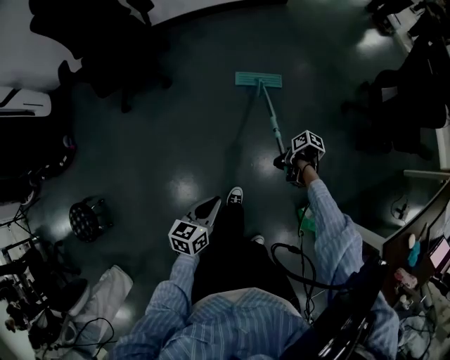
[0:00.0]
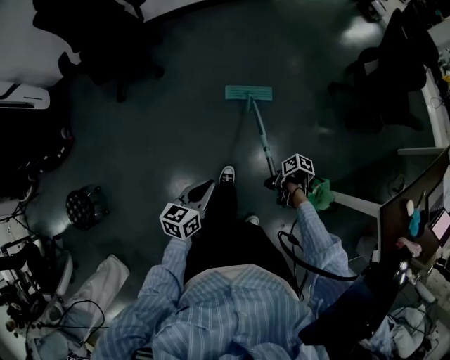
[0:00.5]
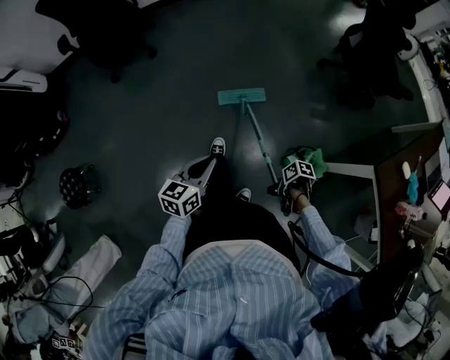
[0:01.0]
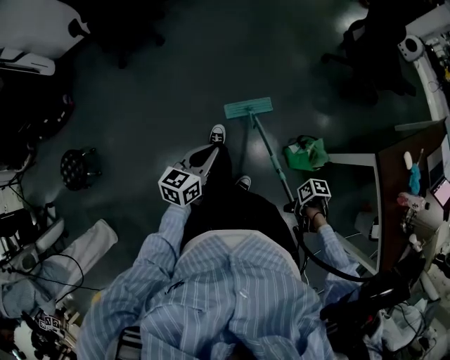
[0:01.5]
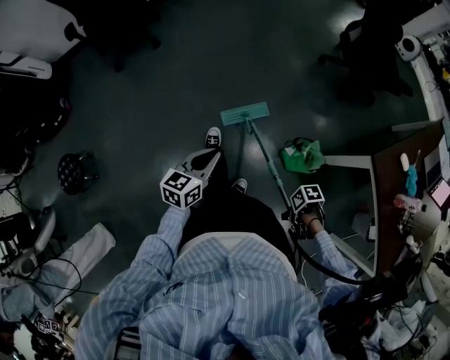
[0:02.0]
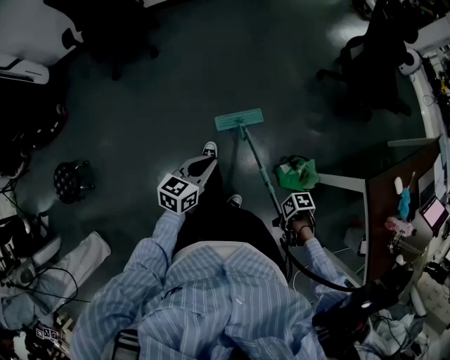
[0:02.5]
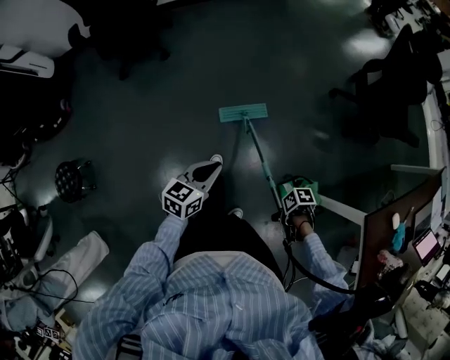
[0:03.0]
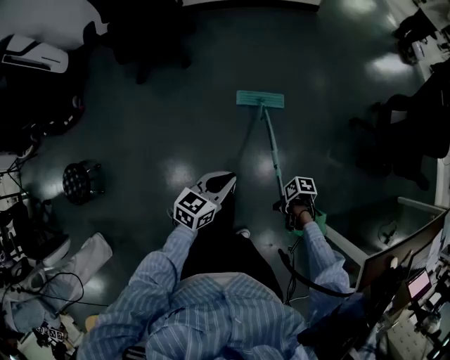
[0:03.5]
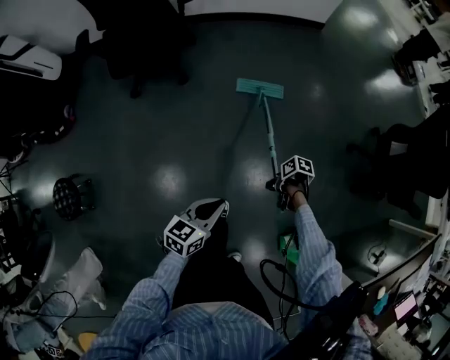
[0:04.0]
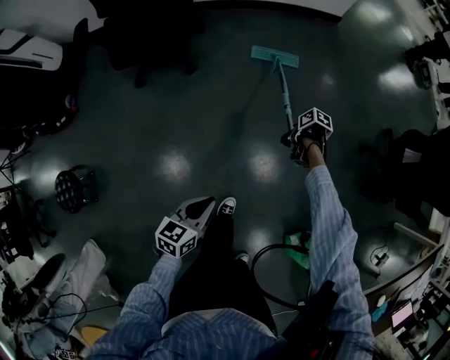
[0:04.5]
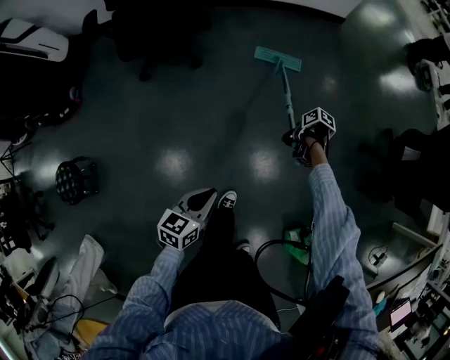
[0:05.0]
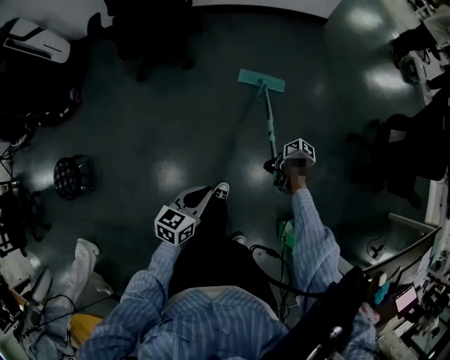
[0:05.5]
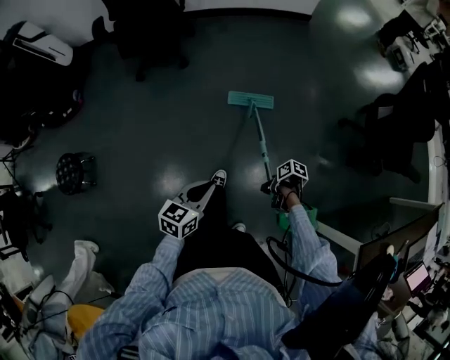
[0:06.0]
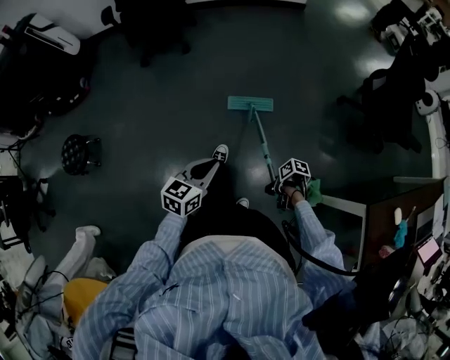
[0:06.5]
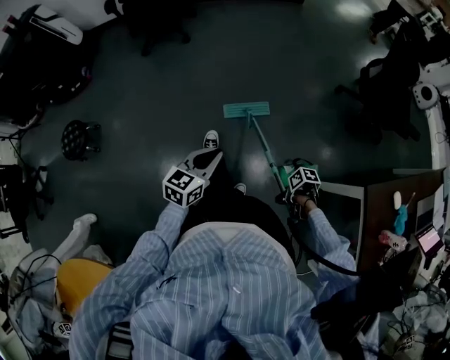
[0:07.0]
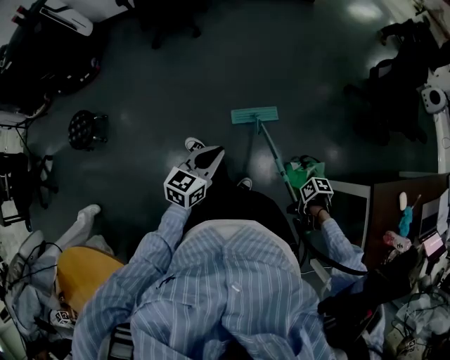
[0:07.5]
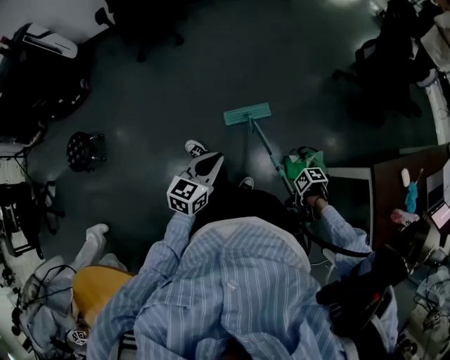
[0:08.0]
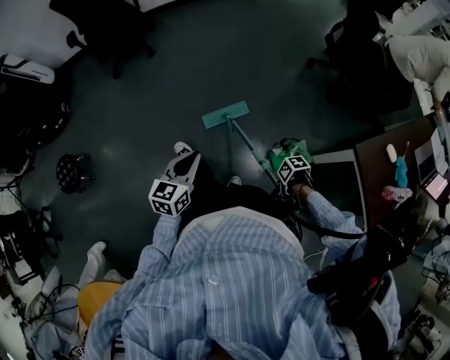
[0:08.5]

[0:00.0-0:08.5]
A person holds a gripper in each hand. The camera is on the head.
0:00.0 to 0:02.0: The left gripper ends up approximately 30 cm from where it was.
0:02.0 to 0:04.0: The left gripper moves about 40 cm.
0:04.0 to 0:06.5: The left gripper moves roughly 30 cm.
0:06.5 to 0:08.5: The left gripper ends up about 10 cm from where it was.

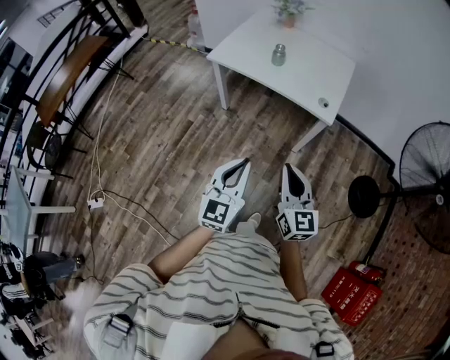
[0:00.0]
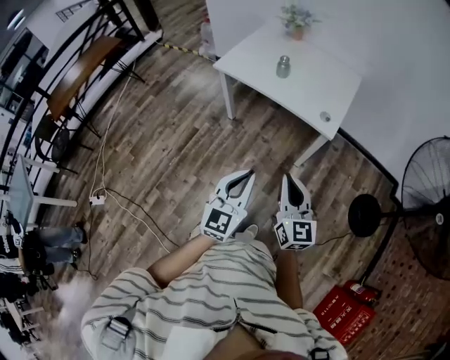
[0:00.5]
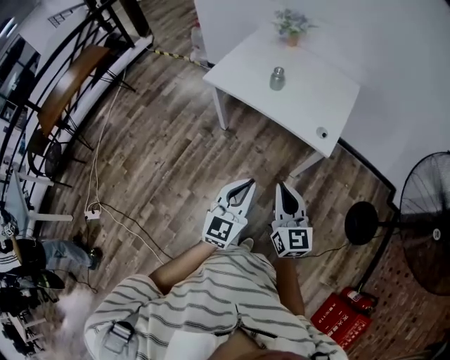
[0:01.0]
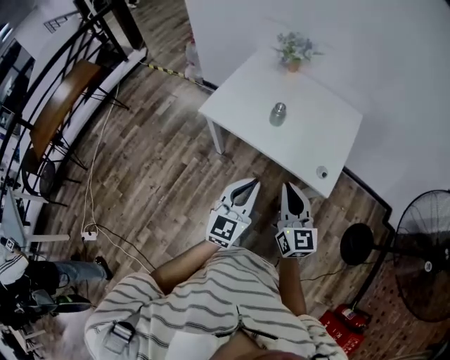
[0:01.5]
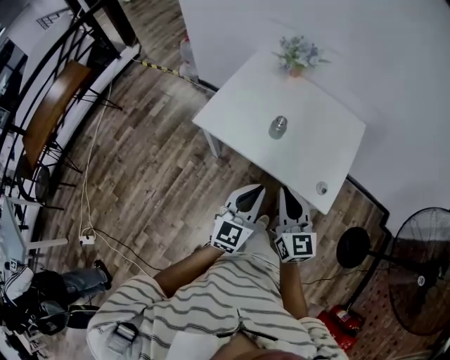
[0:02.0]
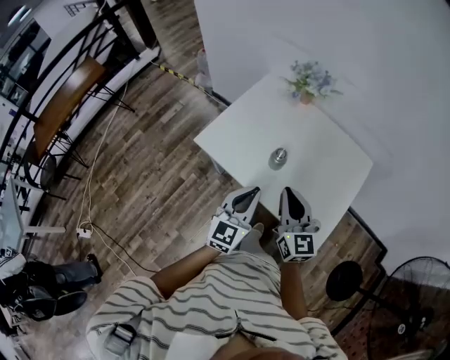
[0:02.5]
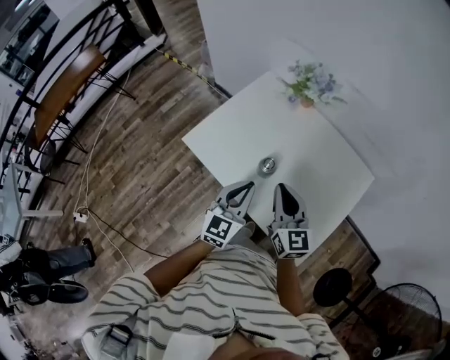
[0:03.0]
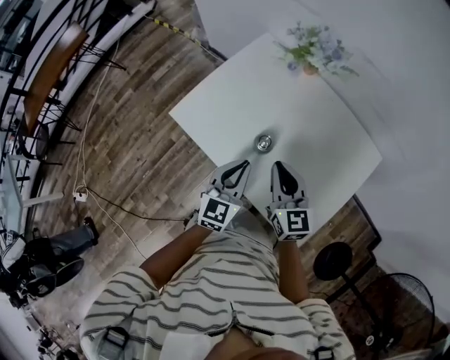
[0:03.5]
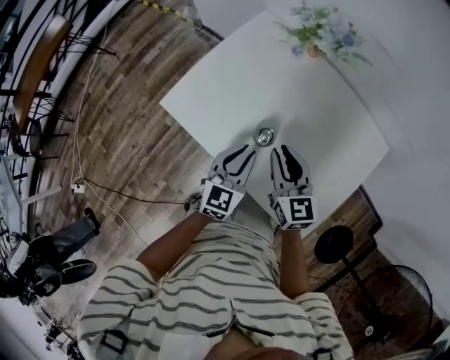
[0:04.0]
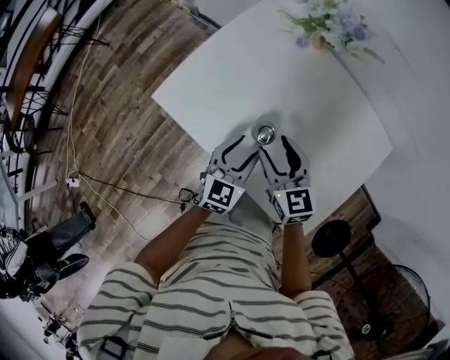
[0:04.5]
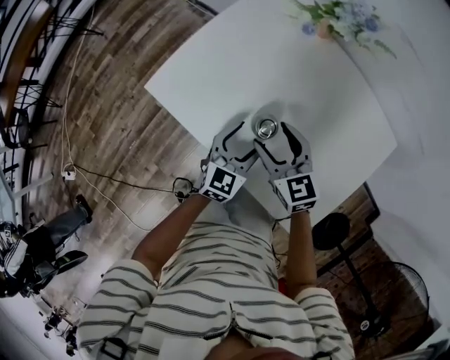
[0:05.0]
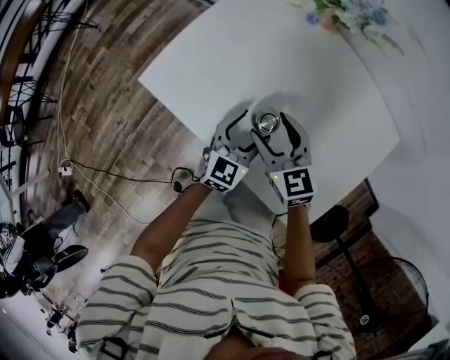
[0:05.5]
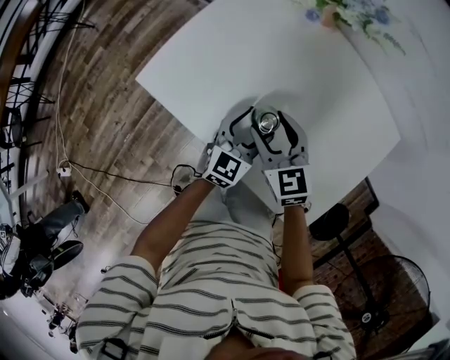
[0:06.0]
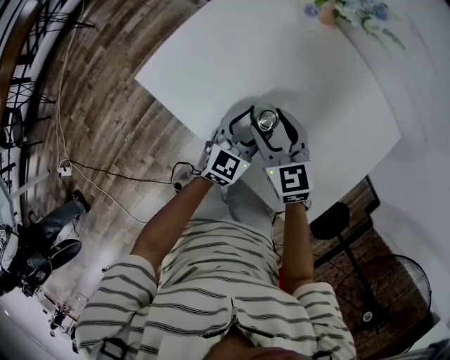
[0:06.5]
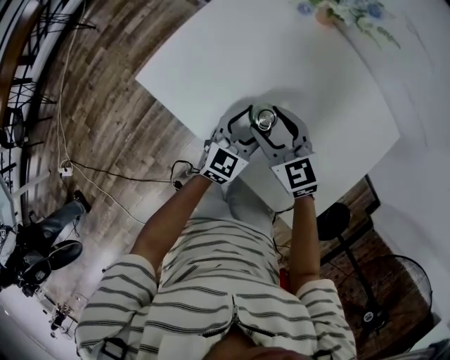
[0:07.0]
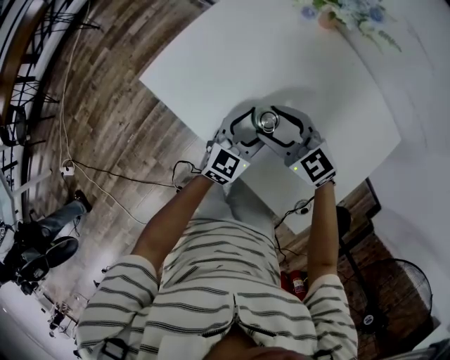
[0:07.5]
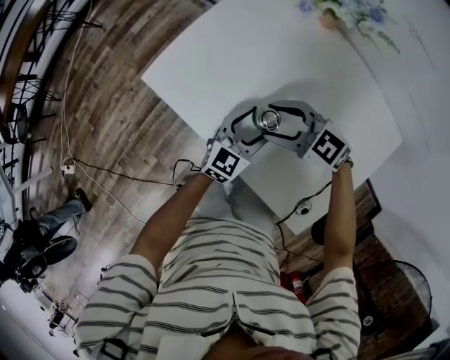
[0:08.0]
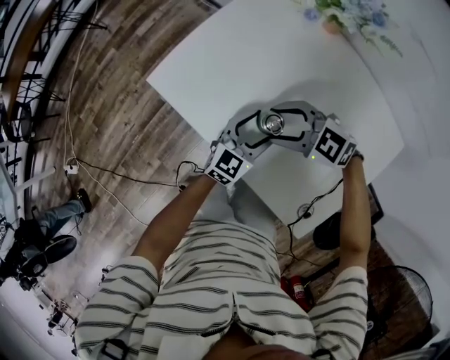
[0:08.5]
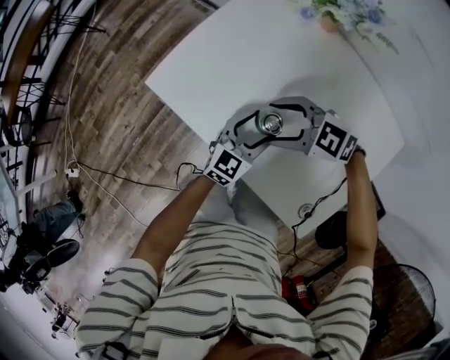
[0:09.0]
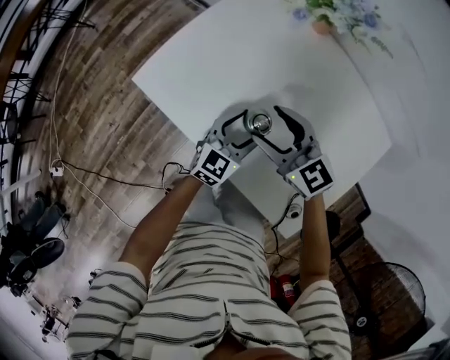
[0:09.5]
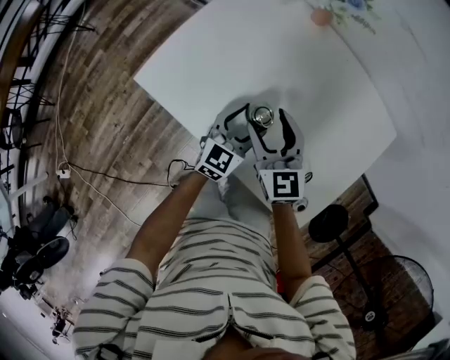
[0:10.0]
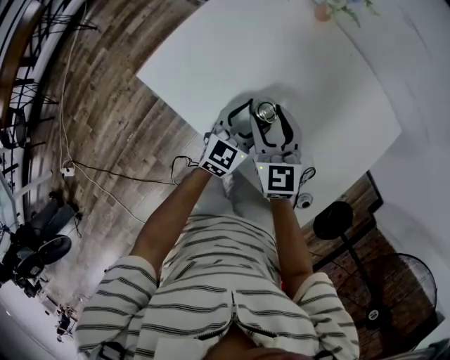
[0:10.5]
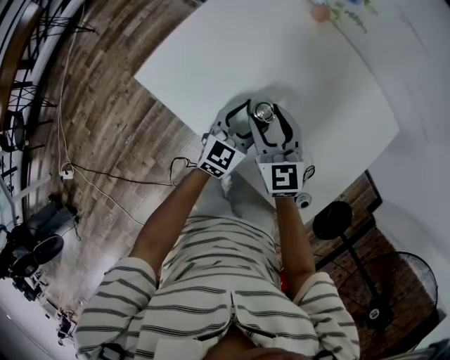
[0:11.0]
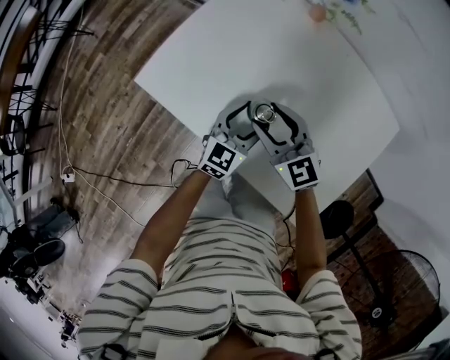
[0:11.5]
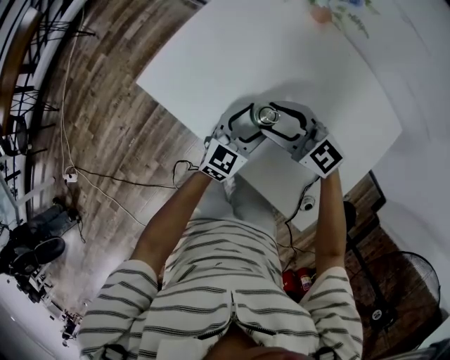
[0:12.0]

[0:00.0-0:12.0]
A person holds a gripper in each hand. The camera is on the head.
0:00.0 to 0:02.0: The grippers both shift forward by some 35 cm.
0:02.0 to 0:04.0: The grippers both shift forward and downward by some 30 cm. The right gripper rotates roughly 20 degrees.
0:04.0 to 0:06.0: Both grippers travel together downward, roughly 10 cm. The left gripper opens. Meanwhile the right gripper opens its fingers.
0:06.0 to 0:08.0: The right gripper rotates some 50 degrees.
0:08.0 to 0:10.0: The right gripper rotates some 60 degrees.
0:10.0 to 0:12.0: The right gripper rotates some 40 degrees.

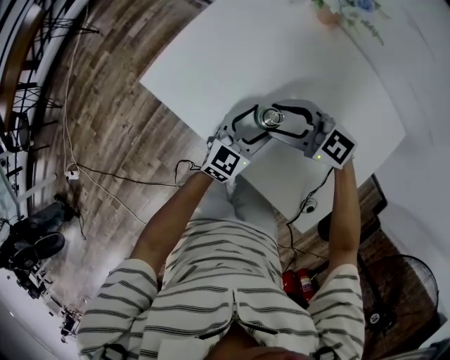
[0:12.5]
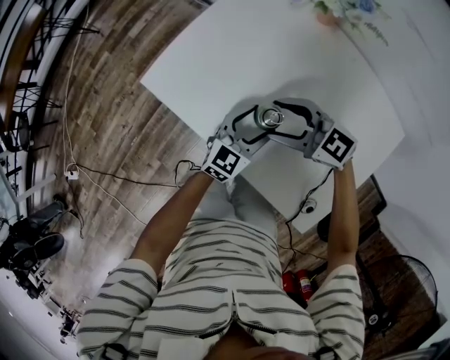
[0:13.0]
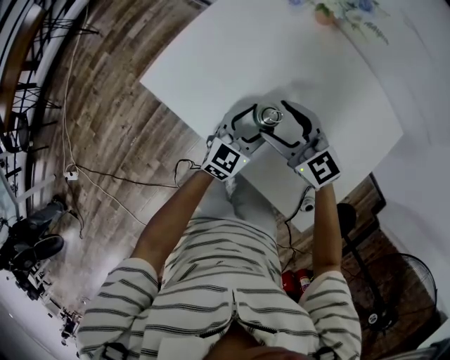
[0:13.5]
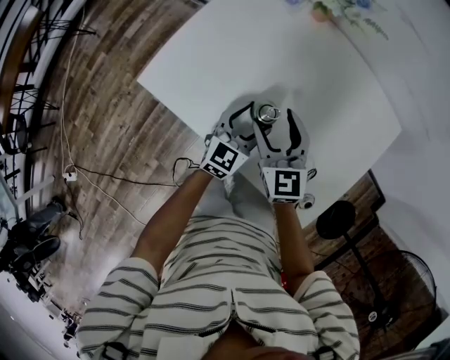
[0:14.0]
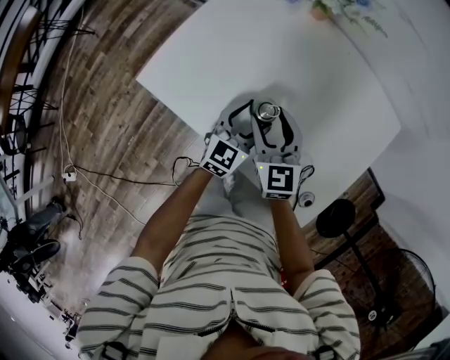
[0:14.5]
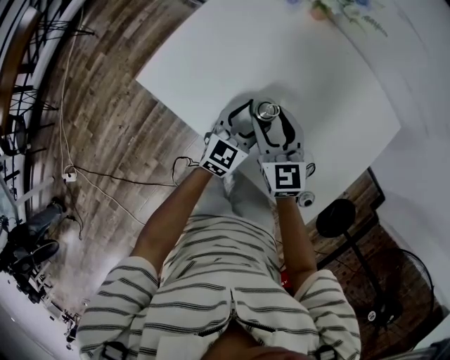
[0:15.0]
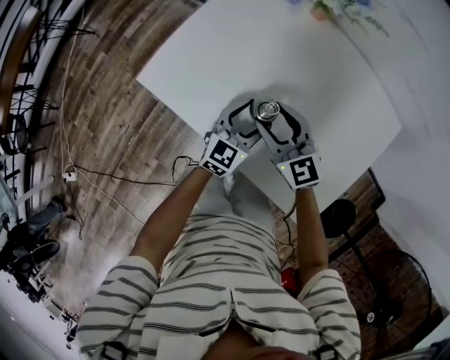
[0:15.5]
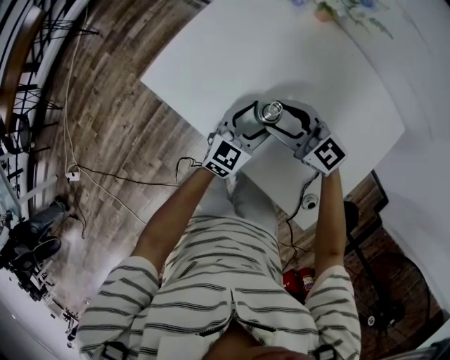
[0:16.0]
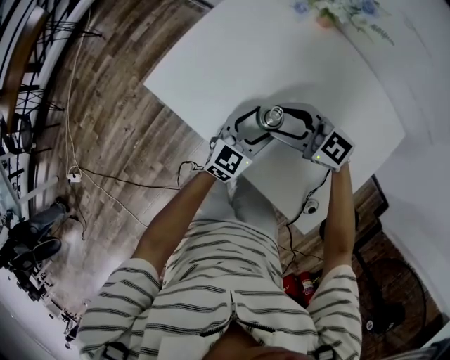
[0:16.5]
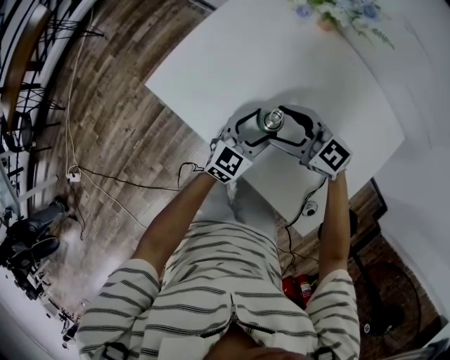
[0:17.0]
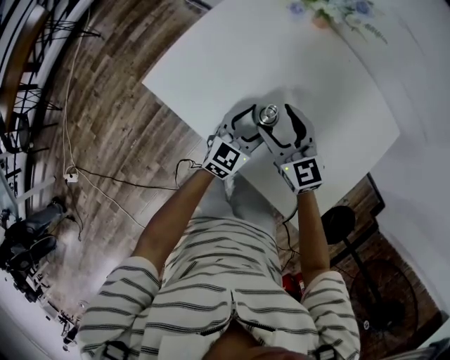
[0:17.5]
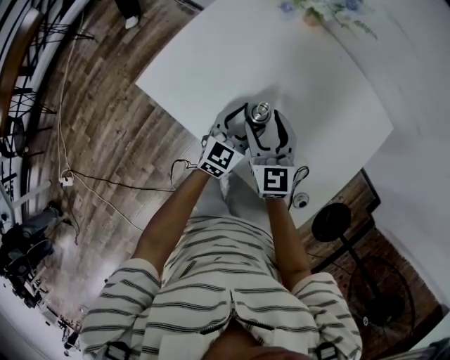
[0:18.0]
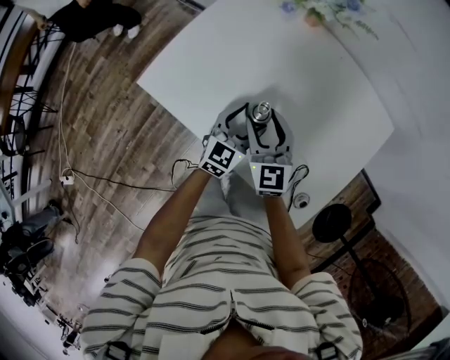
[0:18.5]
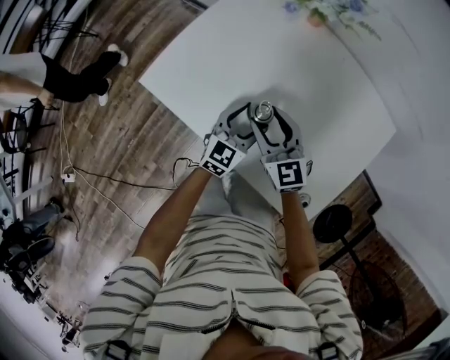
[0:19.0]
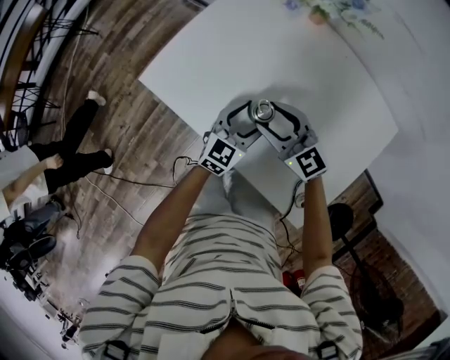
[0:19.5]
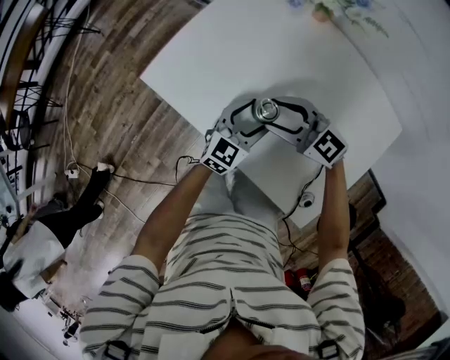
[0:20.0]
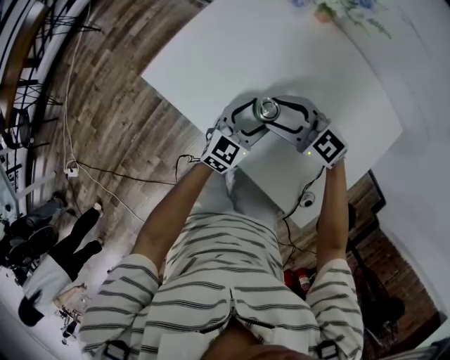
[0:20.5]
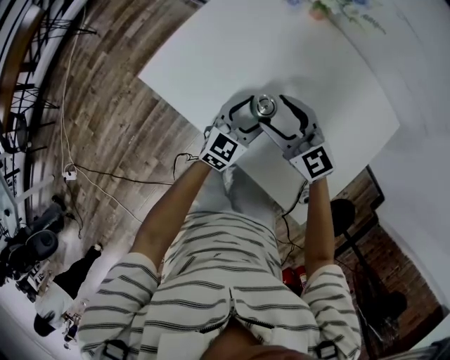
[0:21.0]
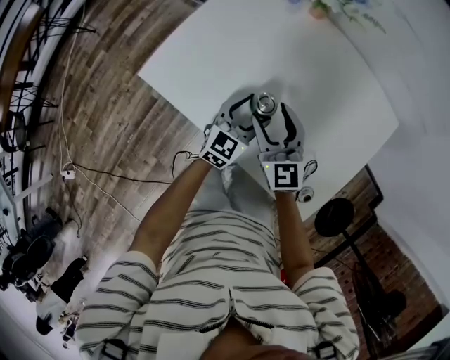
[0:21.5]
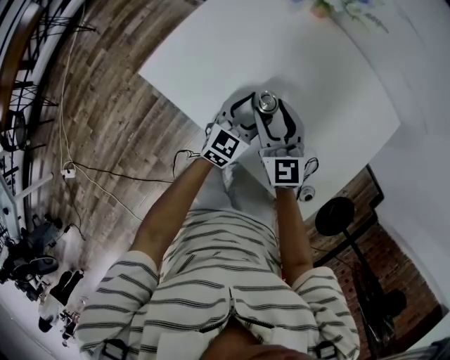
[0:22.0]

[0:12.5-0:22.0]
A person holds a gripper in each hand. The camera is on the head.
0:12.5 to 0:14.5: The right gripper changes its angle by approximately 60 degrees.
0:14.5 to 0:16.5: The right gripper turns by approximately 60 degrees.
0:16.5 to 0:18.0: The right gripper turns by roughly 50 degrees.
0:18.0 to 0:20.0: The right gripper swivels some 50 degrees.
0:20.0 to 0:22.0: The right gripper changes its angle by about 50 degrees.
